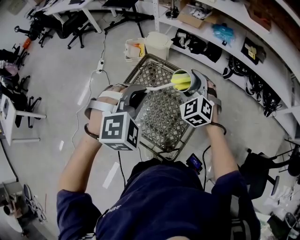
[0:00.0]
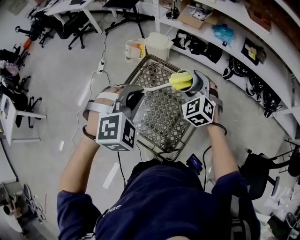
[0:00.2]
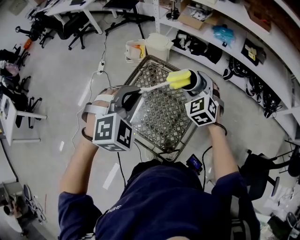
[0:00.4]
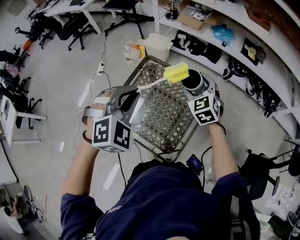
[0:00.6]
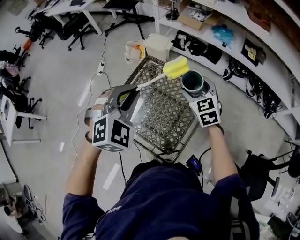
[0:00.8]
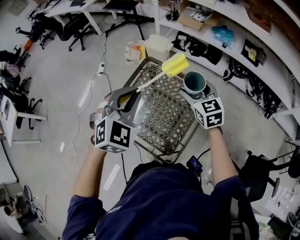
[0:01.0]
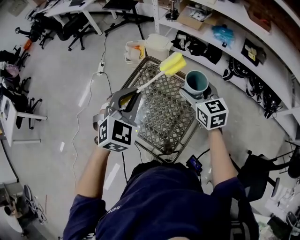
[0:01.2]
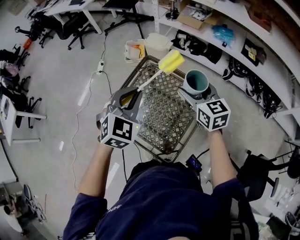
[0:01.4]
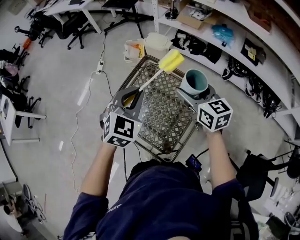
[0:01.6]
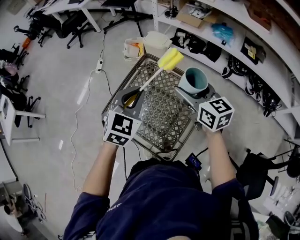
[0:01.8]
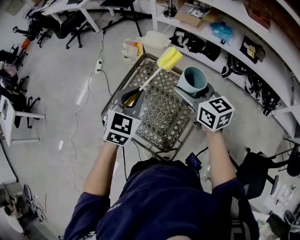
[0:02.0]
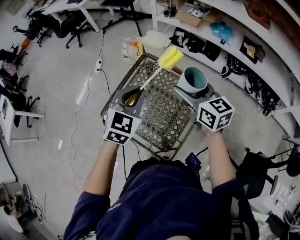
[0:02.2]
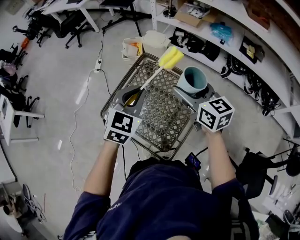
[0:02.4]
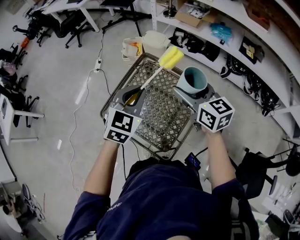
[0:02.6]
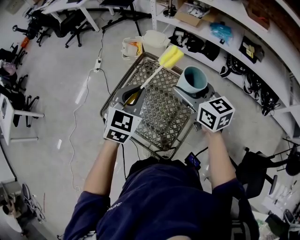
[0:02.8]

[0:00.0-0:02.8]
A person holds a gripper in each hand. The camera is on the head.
0:00.0 to 0:01.4: The right gripper twists approximately 40 degrees clockwise, seen from behind; the left gripper turns by roughly 40 degrees.
0:01.4 to 0:02.8: The grippers stay close to where they were, moving slightly.

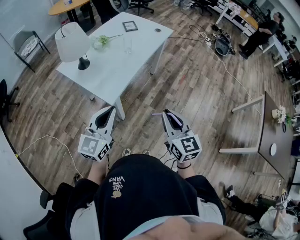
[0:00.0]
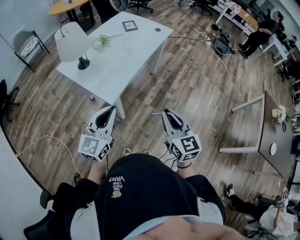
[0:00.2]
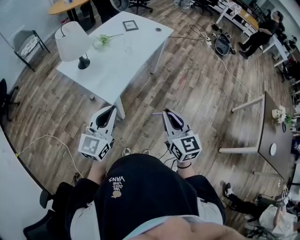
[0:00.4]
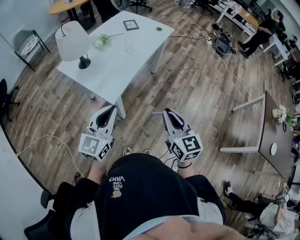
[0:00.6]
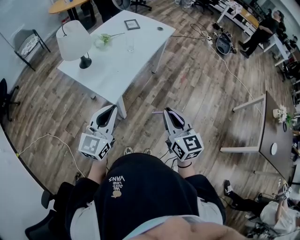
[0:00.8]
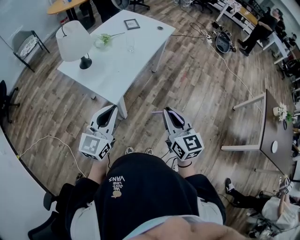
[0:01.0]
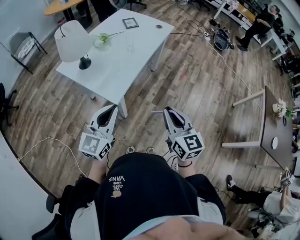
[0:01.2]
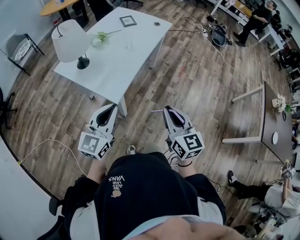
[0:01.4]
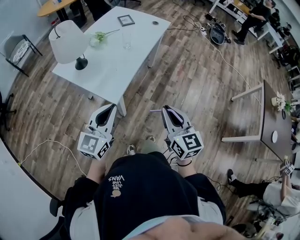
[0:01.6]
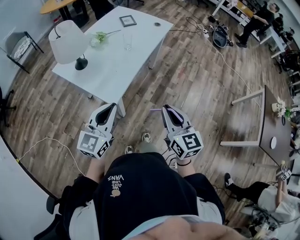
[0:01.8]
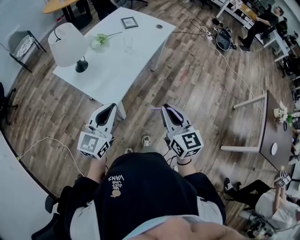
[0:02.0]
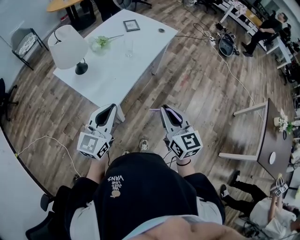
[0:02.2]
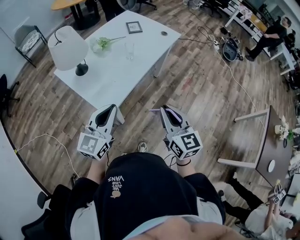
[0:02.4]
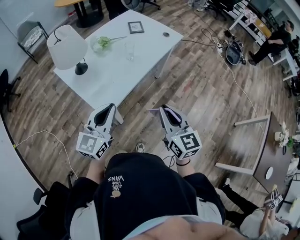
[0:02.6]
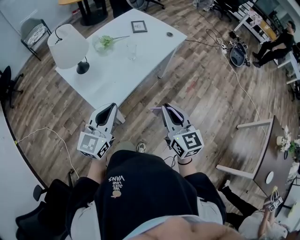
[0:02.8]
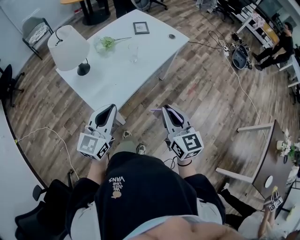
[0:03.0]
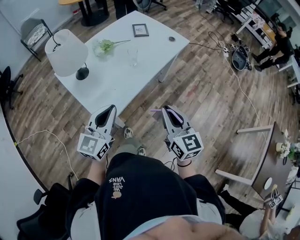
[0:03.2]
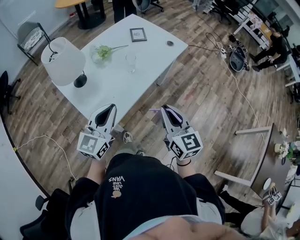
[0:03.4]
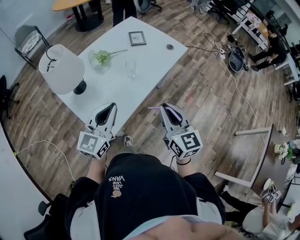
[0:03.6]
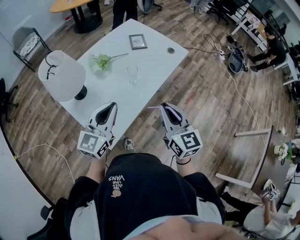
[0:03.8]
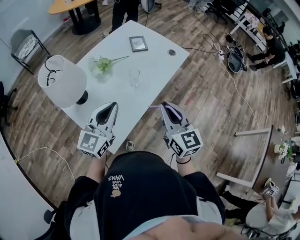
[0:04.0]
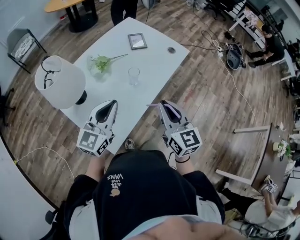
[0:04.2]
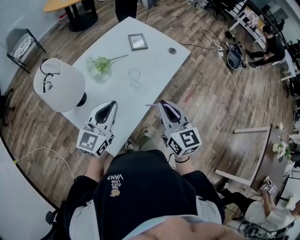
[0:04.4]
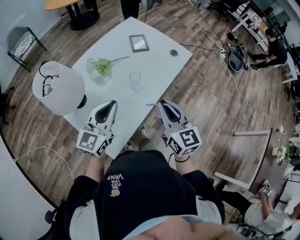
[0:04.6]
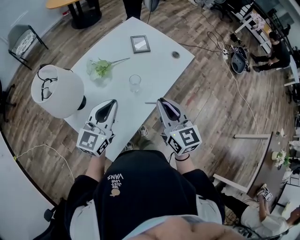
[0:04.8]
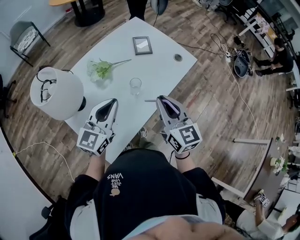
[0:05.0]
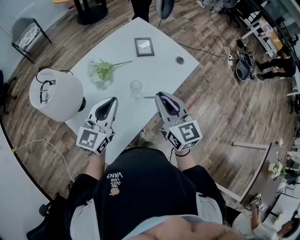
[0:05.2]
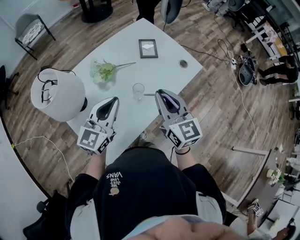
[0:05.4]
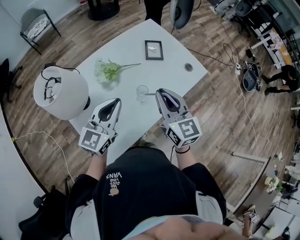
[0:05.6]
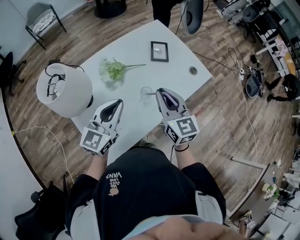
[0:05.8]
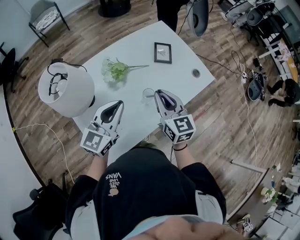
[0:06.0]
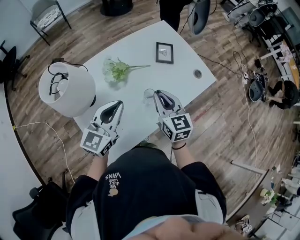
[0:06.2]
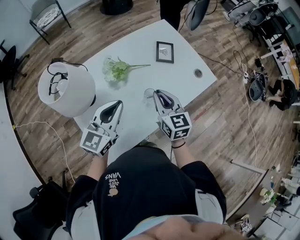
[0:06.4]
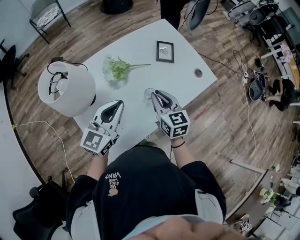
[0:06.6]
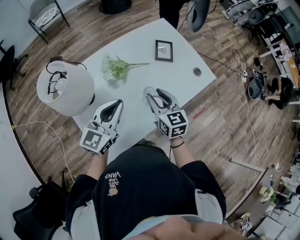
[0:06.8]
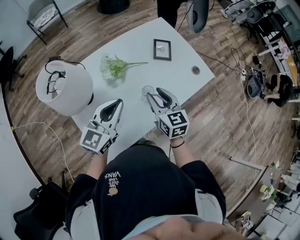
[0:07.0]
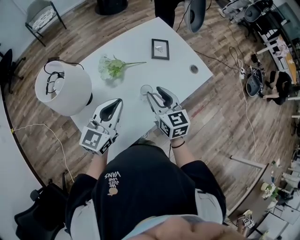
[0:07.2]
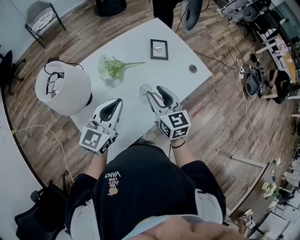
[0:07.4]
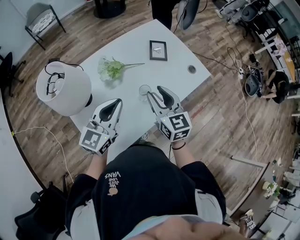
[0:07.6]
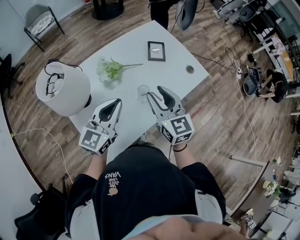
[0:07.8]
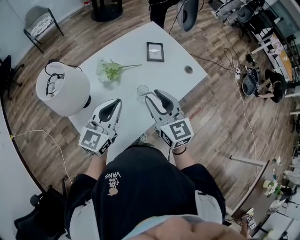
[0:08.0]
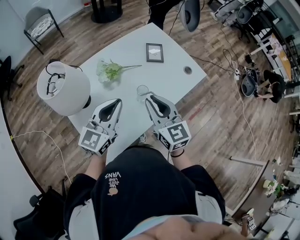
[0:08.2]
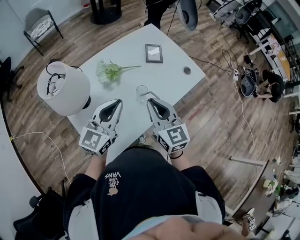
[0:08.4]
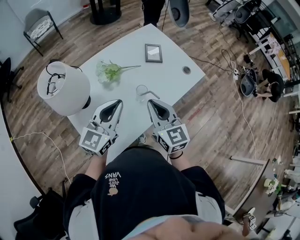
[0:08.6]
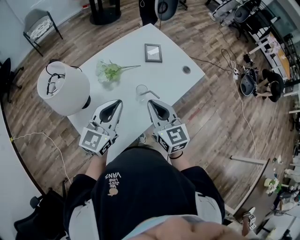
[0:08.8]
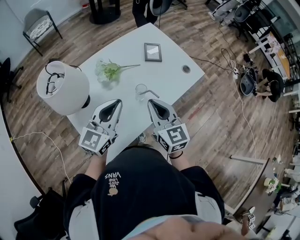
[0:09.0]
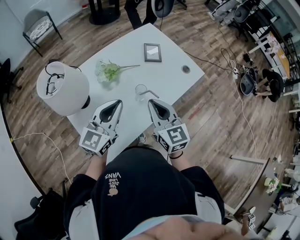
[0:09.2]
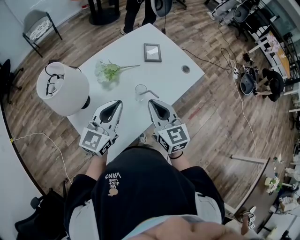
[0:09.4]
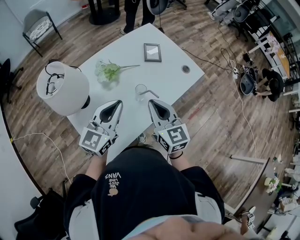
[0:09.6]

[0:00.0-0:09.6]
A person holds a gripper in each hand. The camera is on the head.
0:00.0 to 0:01.6: The left gripper moves about 5 cm.
0:01.6 to 0:03.2: Both grippers move forward, about 20 cm.
0:03.2 to 0:04.8: The two grippers go some 25 cm forward.
0:04.8 to 0:06.4: The left gripper goes about 5 cm forward. Meanwhile the right gripper moves forward and downward, roughly 15 cm.
0:06.4 to 0:08.0: The right gripper moves upward and backward, some 10 cm, and opens.
0:08.0 to 0:09.6: The right gripper closes.

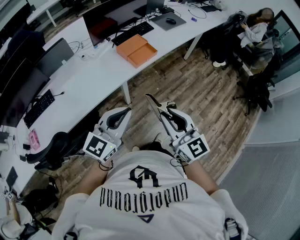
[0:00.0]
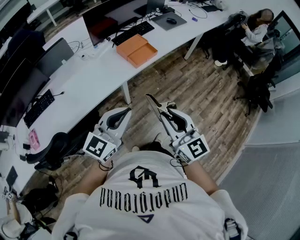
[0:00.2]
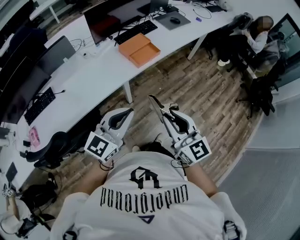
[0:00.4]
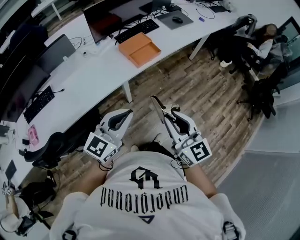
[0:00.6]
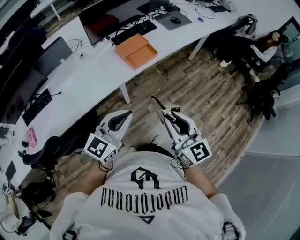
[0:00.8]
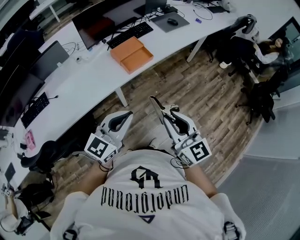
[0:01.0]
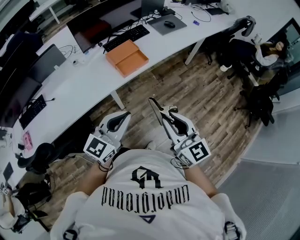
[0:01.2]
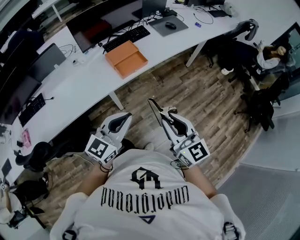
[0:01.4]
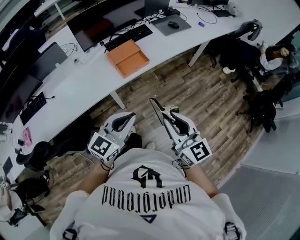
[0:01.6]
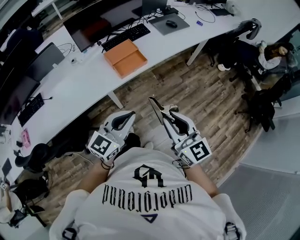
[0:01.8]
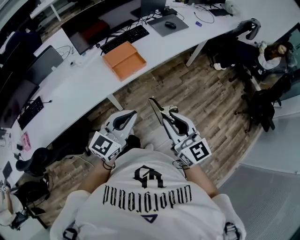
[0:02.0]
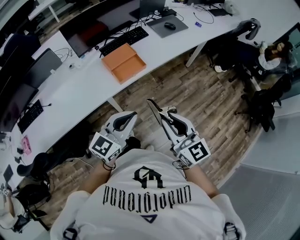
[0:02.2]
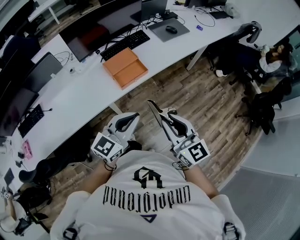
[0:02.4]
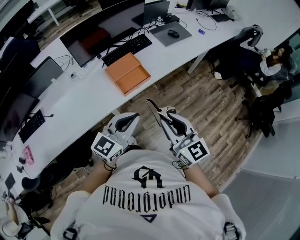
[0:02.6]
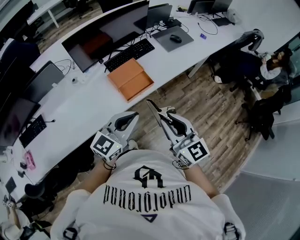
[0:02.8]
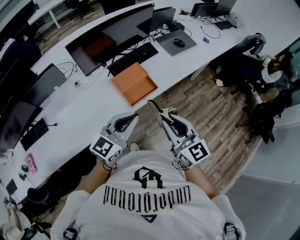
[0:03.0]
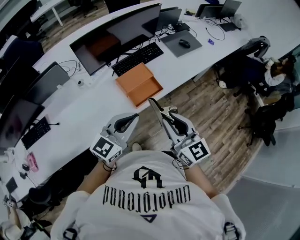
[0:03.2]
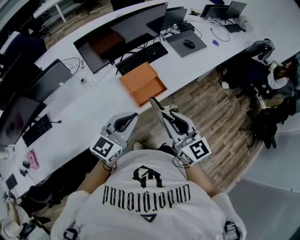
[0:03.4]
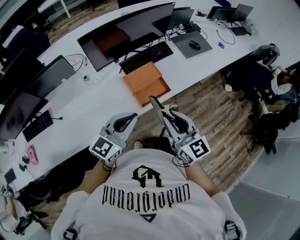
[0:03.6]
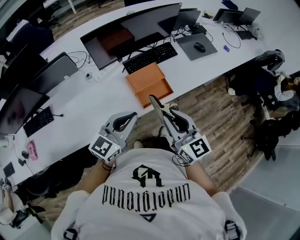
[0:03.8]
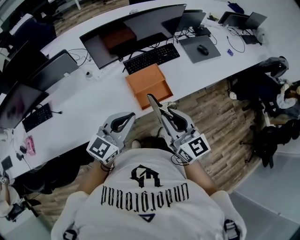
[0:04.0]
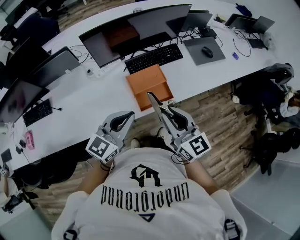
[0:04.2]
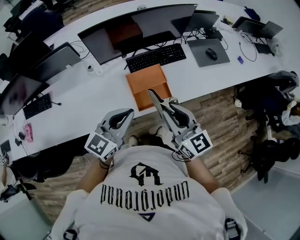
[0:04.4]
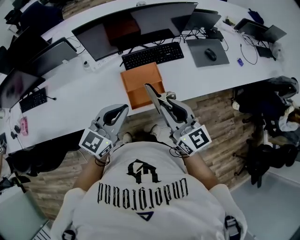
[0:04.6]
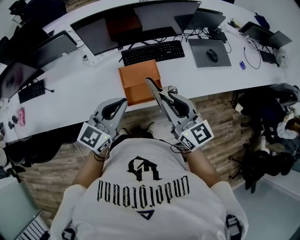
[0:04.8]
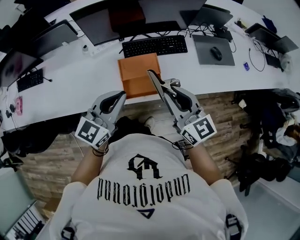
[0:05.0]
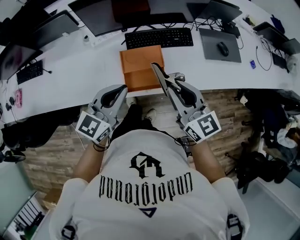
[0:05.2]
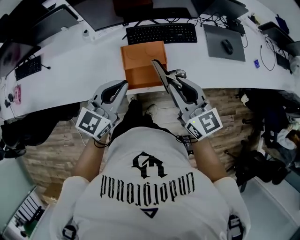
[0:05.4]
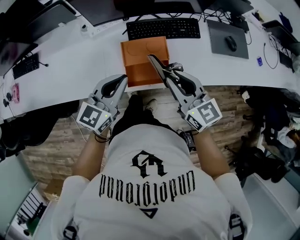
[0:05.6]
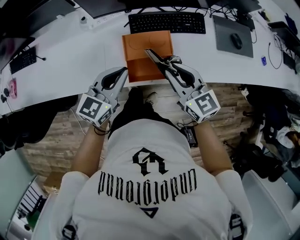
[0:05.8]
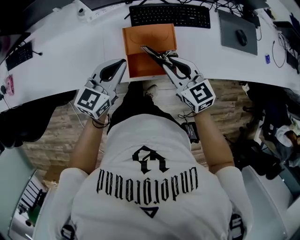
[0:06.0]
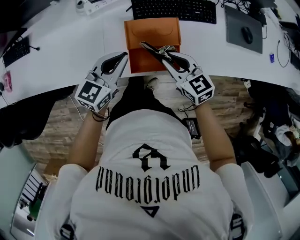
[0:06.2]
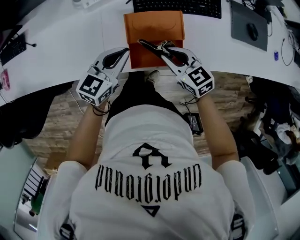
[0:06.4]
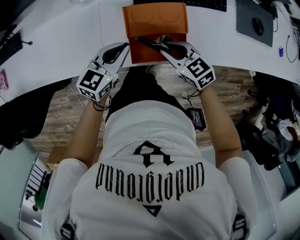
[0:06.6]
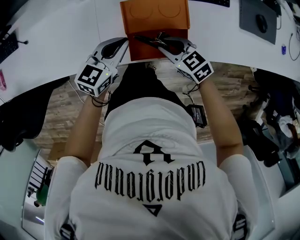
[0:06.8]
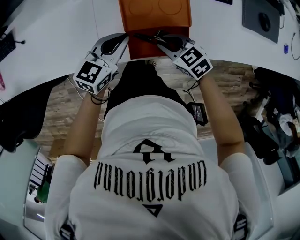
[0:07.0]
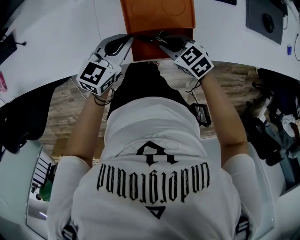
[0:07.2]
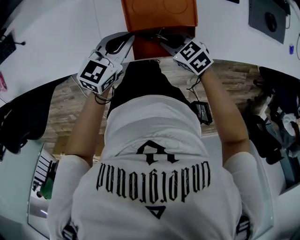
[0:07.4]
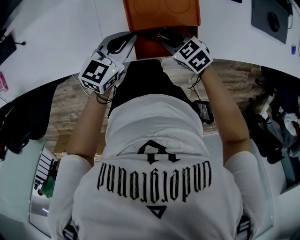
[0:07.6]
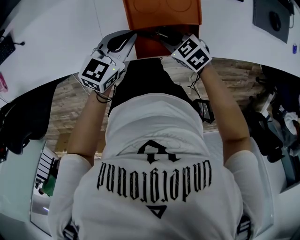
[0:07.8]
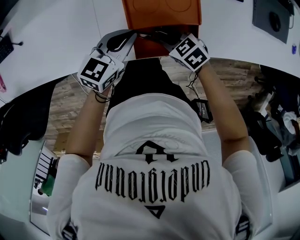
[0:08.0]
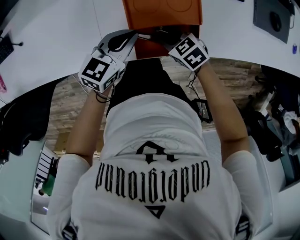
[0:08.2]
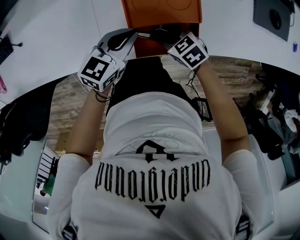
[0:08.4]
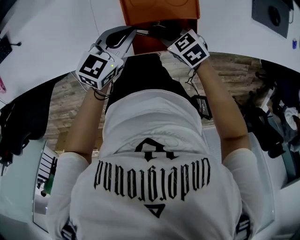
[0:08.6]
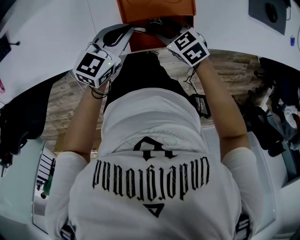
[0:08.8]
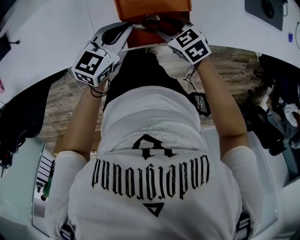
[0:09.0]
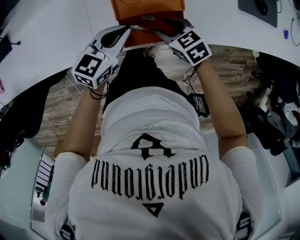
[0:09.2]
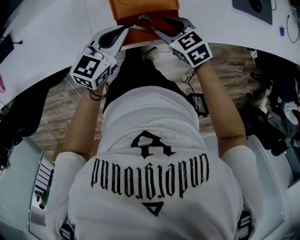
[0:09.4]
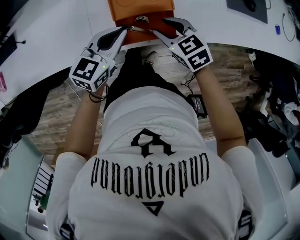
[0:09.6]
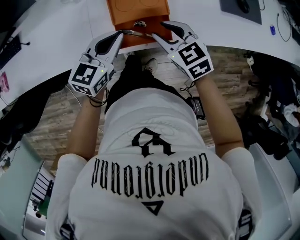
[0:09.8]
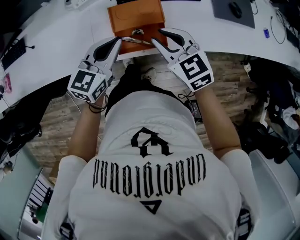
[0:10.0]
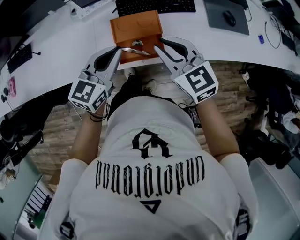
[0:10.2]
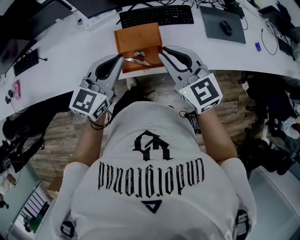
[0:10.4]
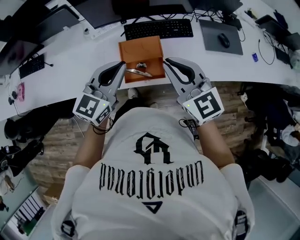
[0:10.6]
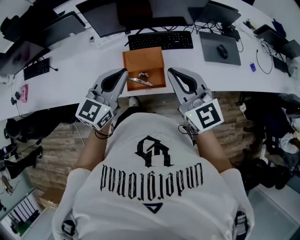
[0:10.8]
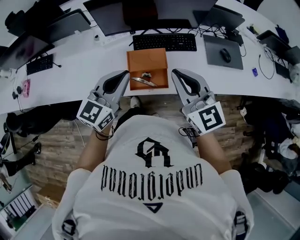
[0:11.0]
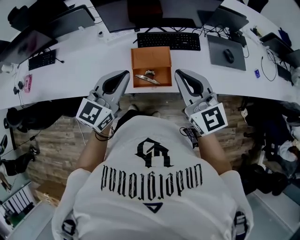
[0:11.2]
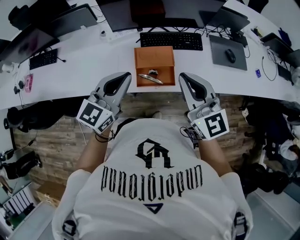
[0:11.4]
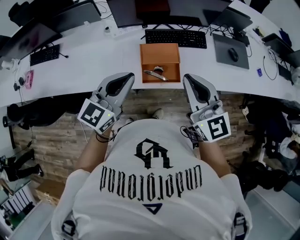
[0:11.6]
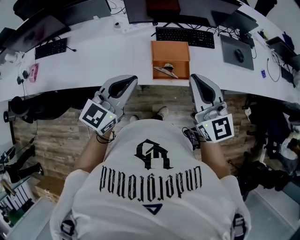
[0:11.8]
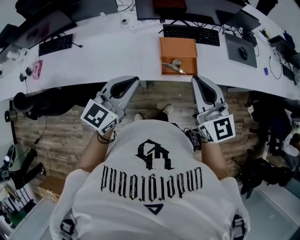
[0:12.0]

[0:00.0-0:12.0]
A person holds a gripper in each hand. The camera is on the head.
0:00.0 to 0:01.6: Both grippers move to the right and forward, roughly 20 cm.
0:01.6 to 0:03.0: Both grippers travel together forward and to the left, about 20 cm.
0:03.0 to 0:04.4: The two grippers go approximately 15 cm forward. The left gripper swivels roughly 20 degrees.
0:04.4 to 0:06.0: Both grippers travel together downward and forward, approximately 20 cm. The left gripper turns by about 20 degrees. The right gripper turns by approximately 30 degrees.
0:06.0 to 0:07.6: Both grippers travel together downward, approximately 15 cm. The right gripper swivels about 40 degrees.
0:07.6 to 0:09.0: The grippers stay close to where they were, moving slightly.
0:09.0 to 0:10.4: The two grippers go approximately 30 cm upward. The right gripper angles its fingers upward, by approximately 40 degrees, and closes up. Meanwhile the left gripper swivels approximately 20 degrees.
0:10.4 to 0:12.0: The right gripper heads backward, to the left and upward, covering about 20 cm. The left gripper goes about 20 cm to the left and backward.
